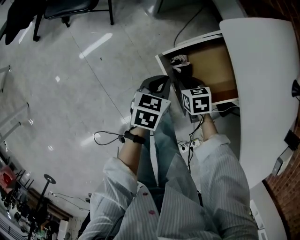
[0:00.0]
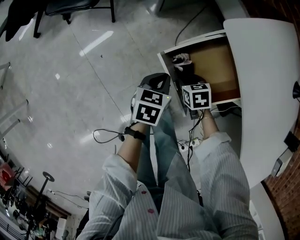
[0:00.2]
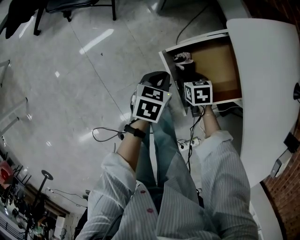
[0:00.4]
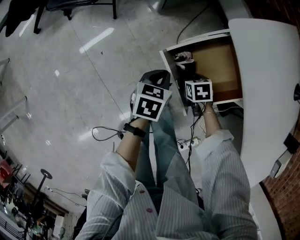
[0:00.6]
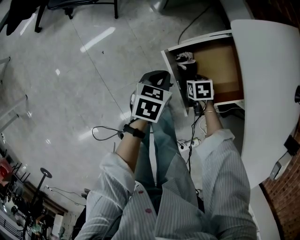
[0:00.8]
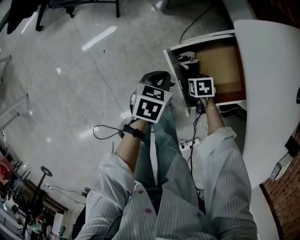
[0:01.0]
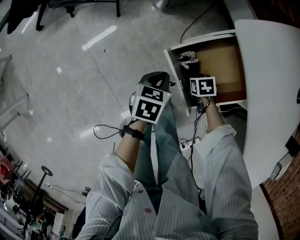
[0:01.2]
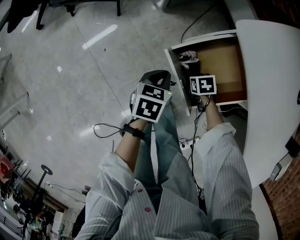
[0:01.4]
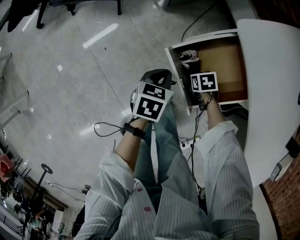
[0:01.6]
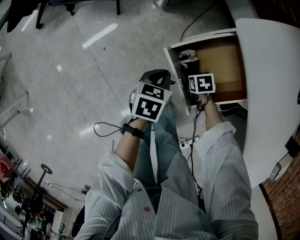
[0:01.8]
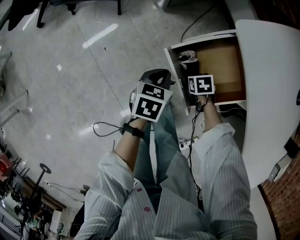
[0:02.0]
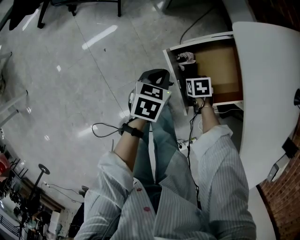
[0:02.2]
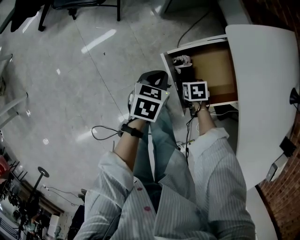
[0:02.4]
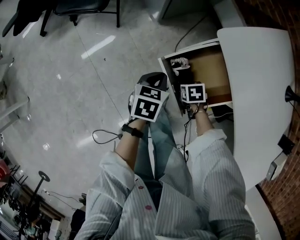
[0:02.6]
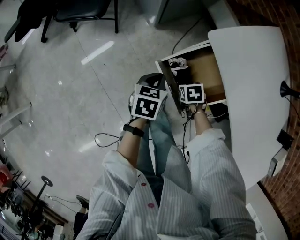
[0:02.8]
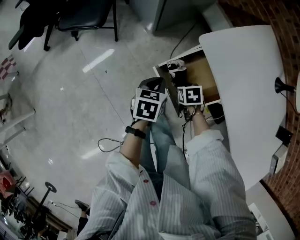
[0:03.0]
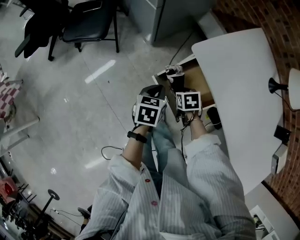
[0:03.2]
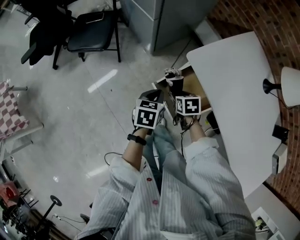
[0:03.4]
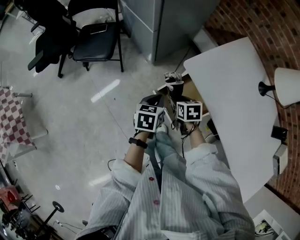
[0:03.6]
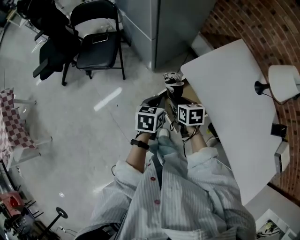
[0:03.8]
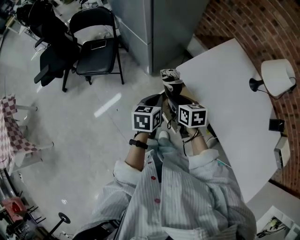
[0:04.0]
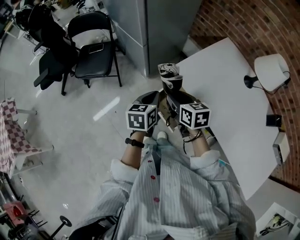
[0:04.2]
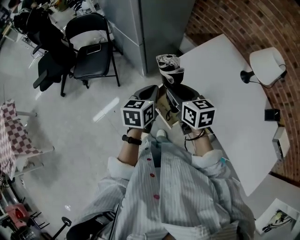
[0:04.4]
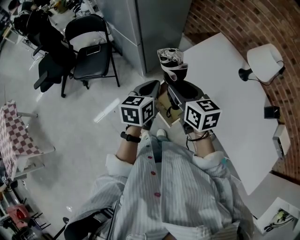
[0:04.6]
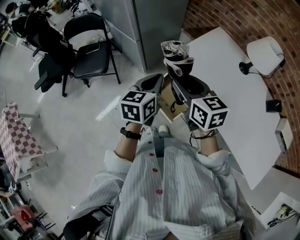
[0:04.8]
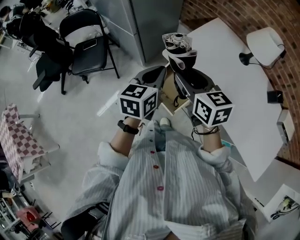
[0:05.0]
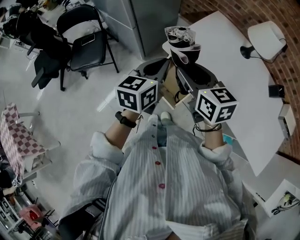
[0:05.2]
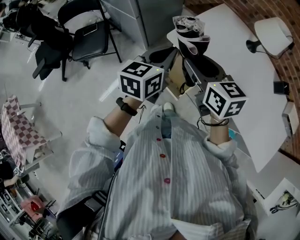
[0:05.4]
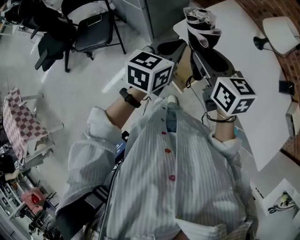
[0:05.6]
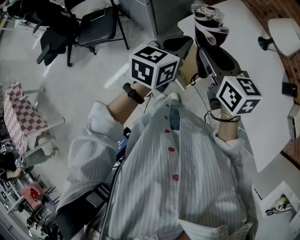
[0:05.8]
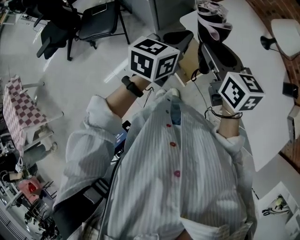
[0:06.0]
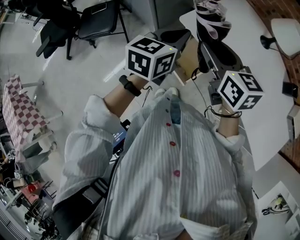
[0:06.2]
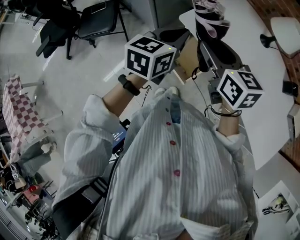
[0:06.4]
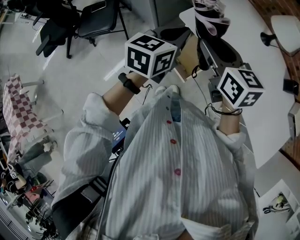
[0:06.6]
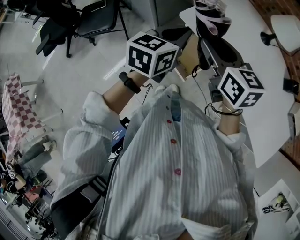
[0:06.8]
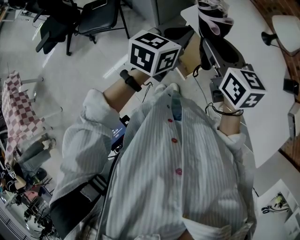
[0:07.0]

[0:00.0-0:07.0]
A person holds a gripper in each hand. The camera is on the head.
0:00.0 to 0:01.4: The right gripper shifts roughly 10 cm downward, and opens its fingers.
0:01.4 to 0:02.8: Both grippers move upward, about 10 cm.
0:02.8 to 0:04.2: The right gripper goes roughly 35 cm upward, and points its fingers approximately 40 degrees further upward; the left gripper heads upward, covering some 25 cm.
0:04.2 to 0:05.6: Both grippers move upward and to the right, roughly 15 cm. The left gripper swivels roughly 30 degrees.
0:05.6 to 0:07.0: The grippers stay close to where they were, moving slightly.

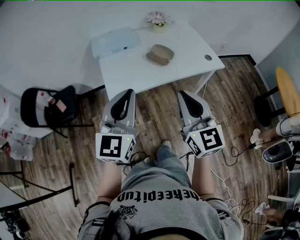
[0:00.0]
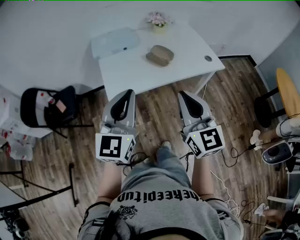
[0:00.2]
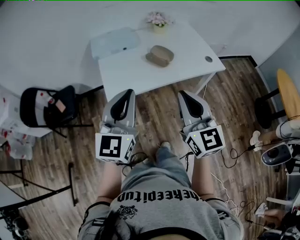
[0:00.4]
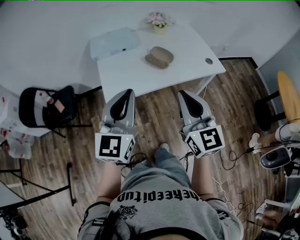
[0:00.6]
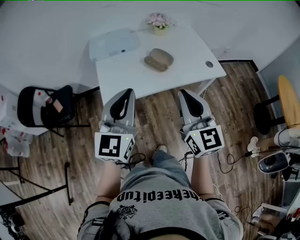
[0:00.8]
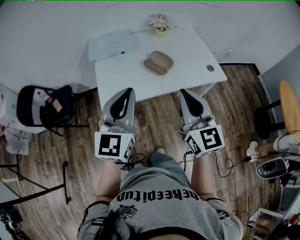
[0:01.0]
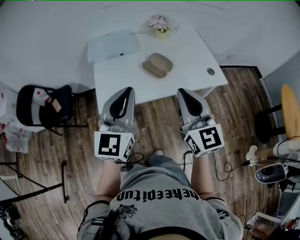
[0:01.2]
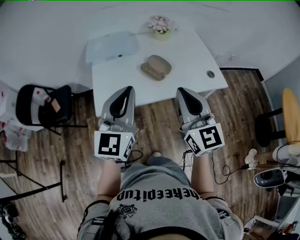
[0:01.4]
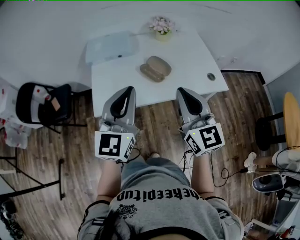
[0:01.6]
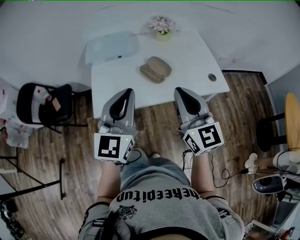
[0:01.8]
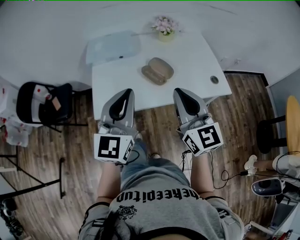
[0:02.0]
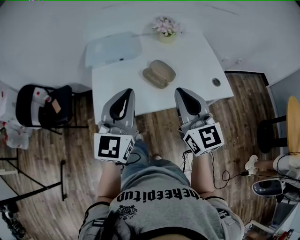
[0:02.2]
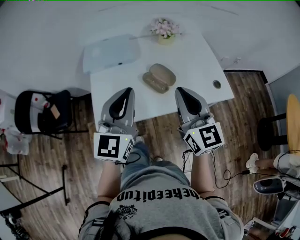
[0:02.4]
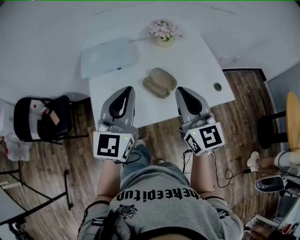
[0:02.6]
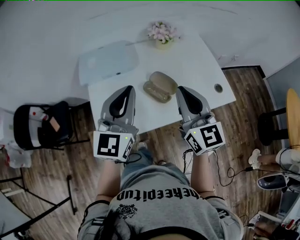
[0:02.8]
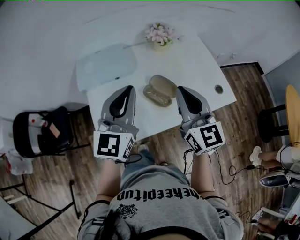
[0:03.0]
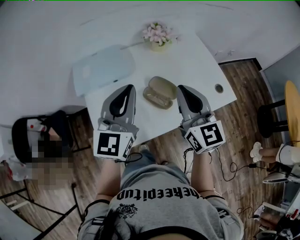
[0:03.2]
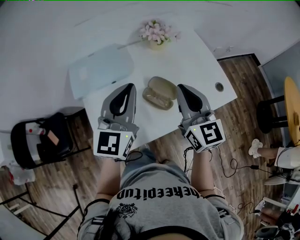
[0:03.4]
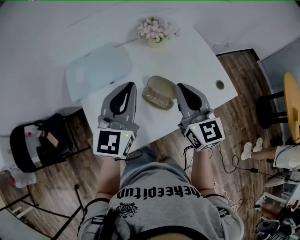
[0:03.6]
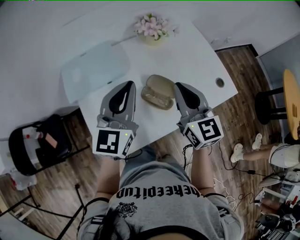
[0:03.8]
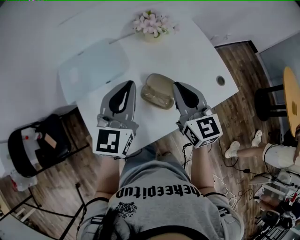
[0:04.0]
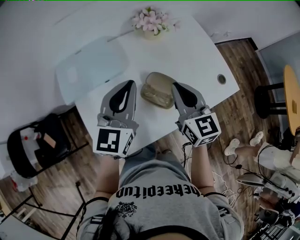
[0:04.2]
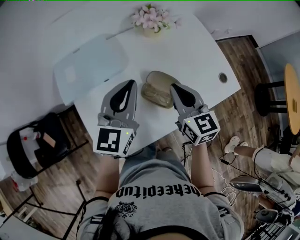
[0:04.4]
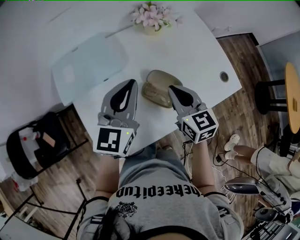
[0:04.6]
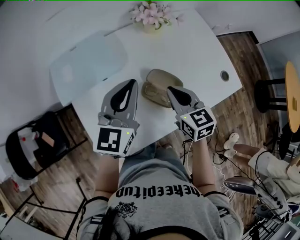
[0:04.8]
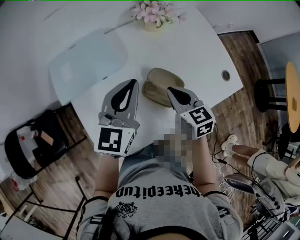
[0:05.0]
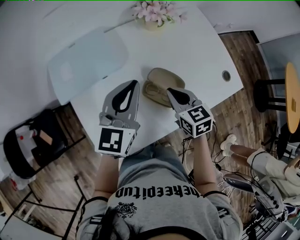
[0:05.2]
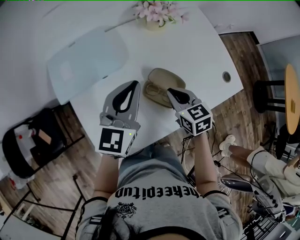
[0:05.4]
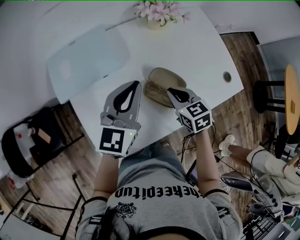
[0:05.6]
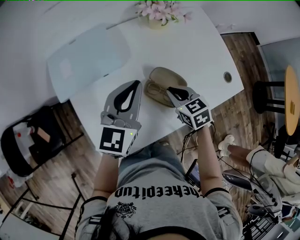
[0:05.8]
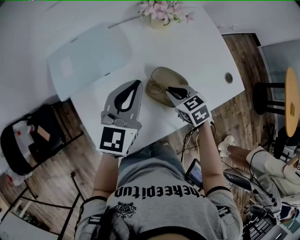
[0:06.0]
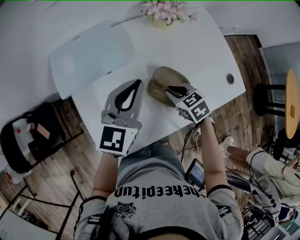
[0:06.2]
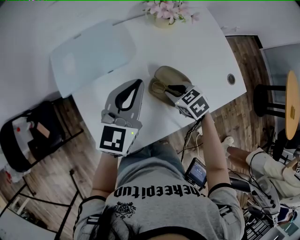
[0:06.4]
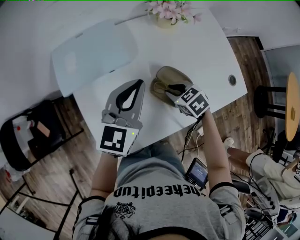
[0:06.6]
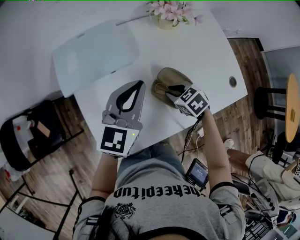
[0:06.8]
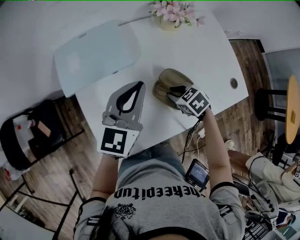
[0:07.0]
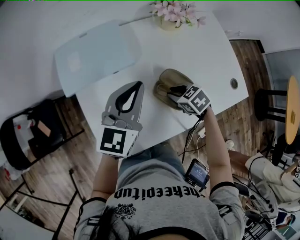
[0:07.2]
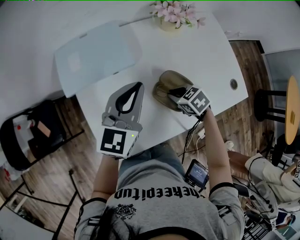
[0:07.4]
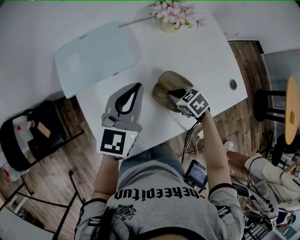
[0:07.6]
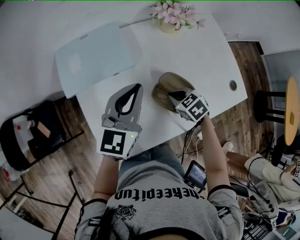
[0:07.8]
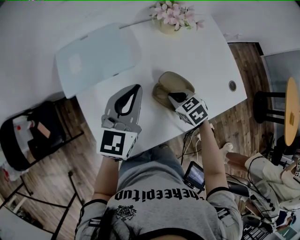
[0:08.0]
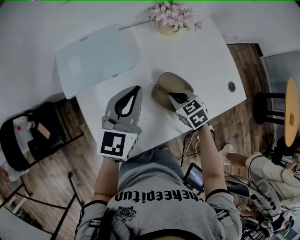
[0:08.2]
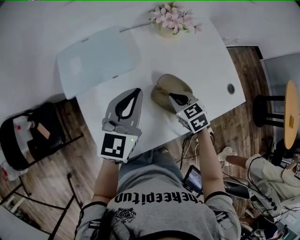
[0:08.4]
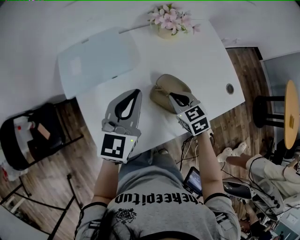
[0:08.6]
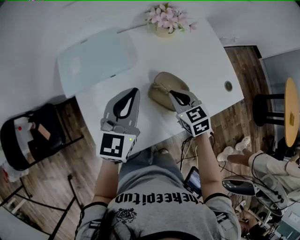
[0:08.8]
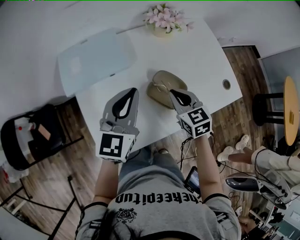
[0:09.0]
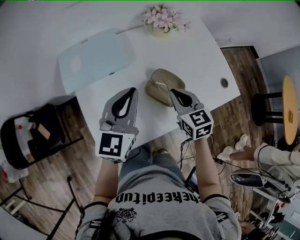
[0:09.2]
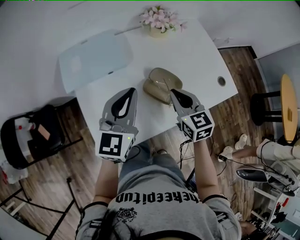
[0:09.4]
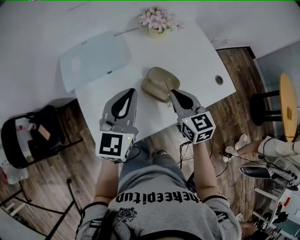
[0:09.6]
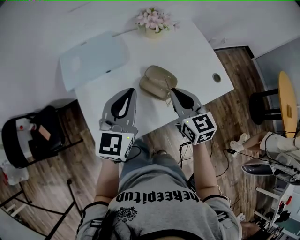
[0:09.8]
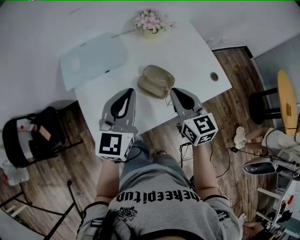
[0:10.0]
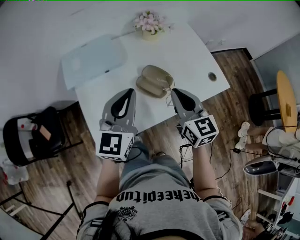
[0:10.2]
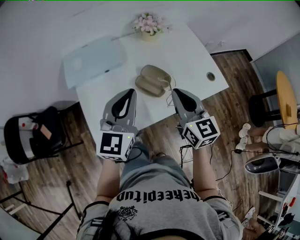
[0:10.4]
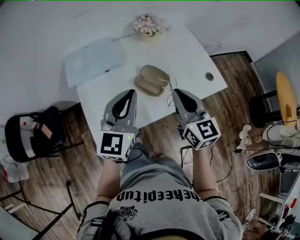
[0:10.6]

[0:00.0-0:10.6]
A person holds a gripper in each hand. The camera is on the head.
0:00.0 to 0:01.6: Both grippers move forward and to the right, about 15 cm.
0:01.6 to 0:03.0: Both grippers move forward, roughly 20 cm.
0:03.0 to 0:04.6: The right gripper is displaced downward and forward by approximately 15 cm, and rotates approximately 30 degrees; the left gripper is displaced forward and downward by roughly 15 cm.
0:04.6 to 0:06.0: The right gripper shifts about 10 cm downward, and changes its angle by about 30 degrees.
0:07.6 to 0:09.0: The right gripper heads upward, covering roughly 10 cm, and turns by approximately 40 degrees.
0:09.0 to 0:10.6: The right gripper goes approximately 20 cm upward and backward, and swivels about 30 degrees. Meanwhile the left gripper shifts some 15 cm backward and upward.

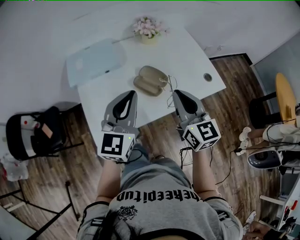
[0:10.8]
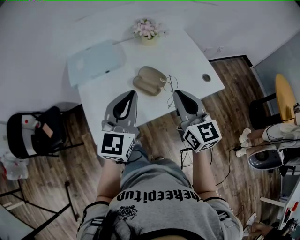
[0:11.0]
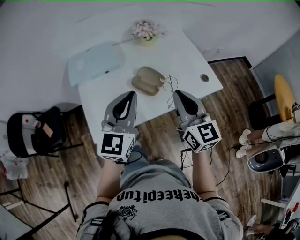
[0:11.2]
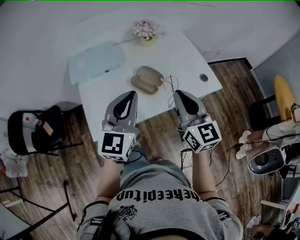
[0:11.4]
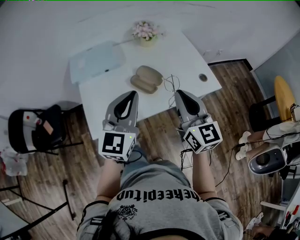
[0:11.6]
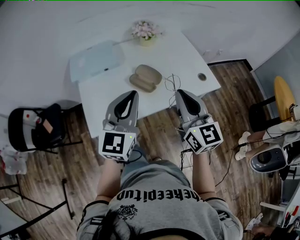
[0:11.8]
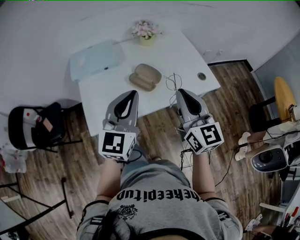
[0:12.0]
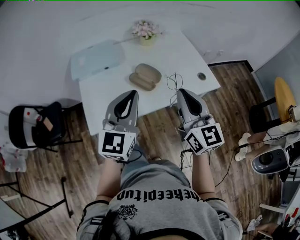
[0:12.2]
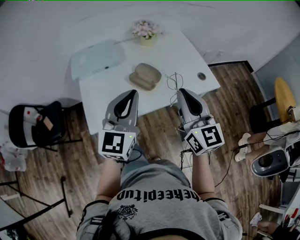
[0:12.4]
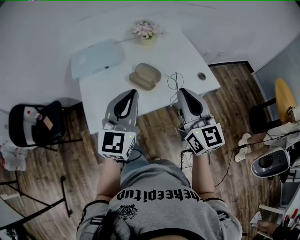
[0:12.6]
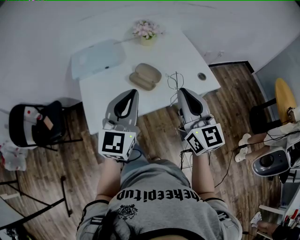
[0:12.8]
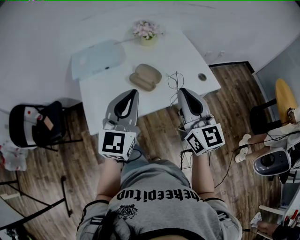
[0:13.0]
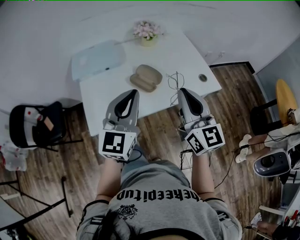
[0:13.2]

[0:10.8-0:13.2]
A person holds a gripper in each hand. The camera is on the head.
0:10.8 to 0:12.0: The grippers both shift backward by roughly 5 cm.
0:12.0 to 0:13.2: The grippers make only small movements.

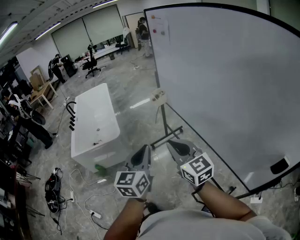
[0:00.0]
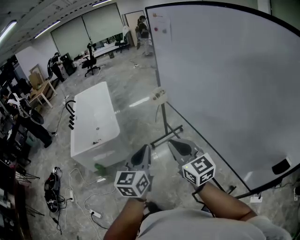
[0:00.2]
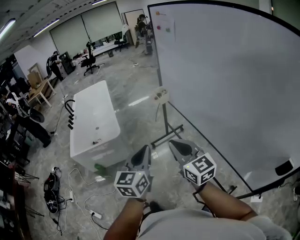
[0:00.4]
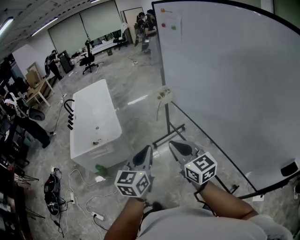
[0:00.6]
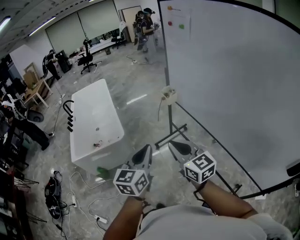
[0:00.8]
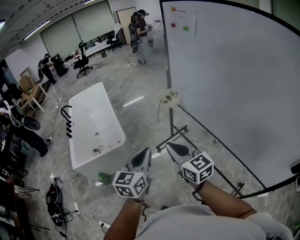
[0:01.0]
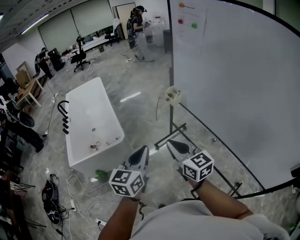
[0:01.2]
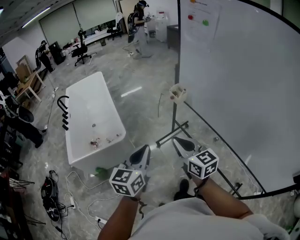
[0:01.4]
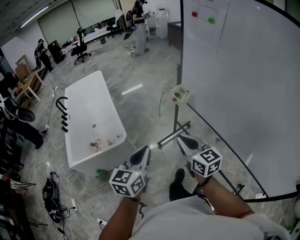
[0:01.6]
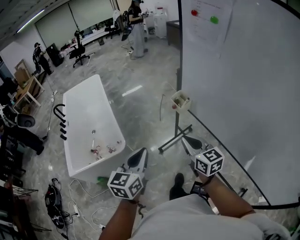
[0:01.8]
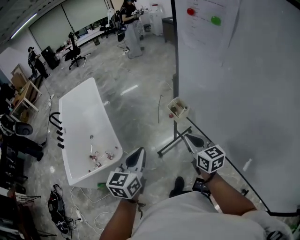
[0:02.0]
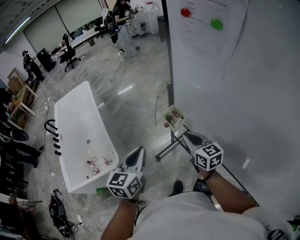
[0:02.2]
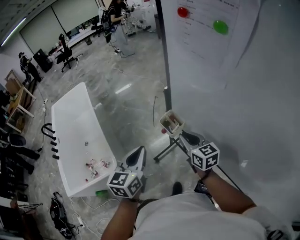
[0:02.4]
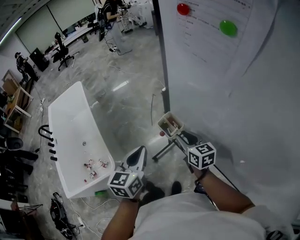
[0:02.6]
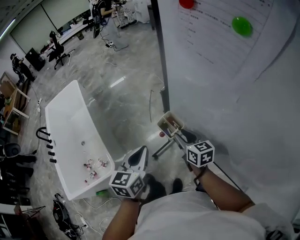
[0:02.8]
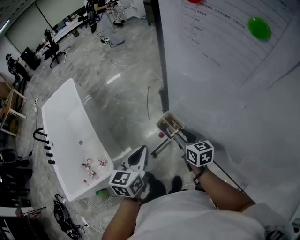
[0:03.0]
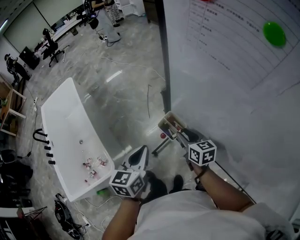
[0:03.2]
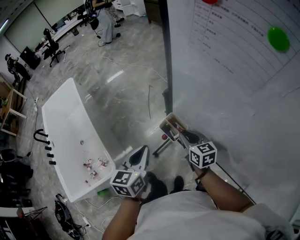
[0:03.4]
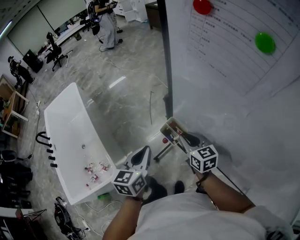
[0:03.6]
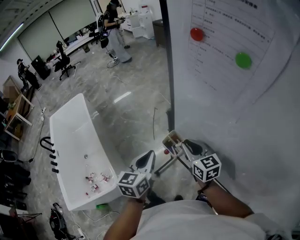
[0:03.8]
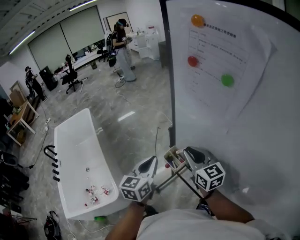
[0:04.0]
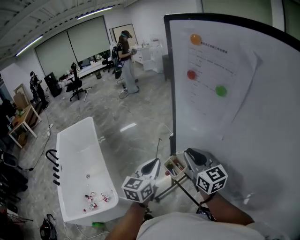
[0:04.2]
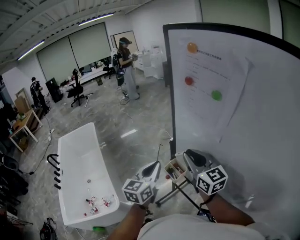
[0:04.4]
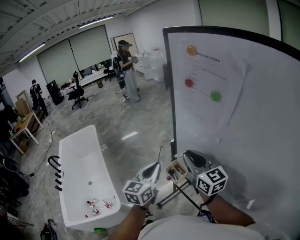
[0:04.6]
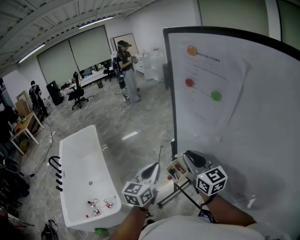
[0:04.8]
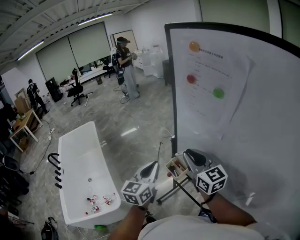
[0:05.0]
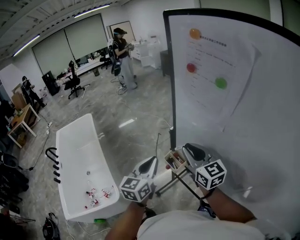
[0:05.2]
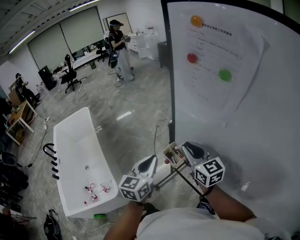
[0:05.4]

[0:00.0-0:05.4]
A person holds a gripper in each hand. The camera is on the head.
0:00.0 to 0:01.4: Both grippers travel together forward and to the left, some 30 cm.
0:01.4 to 0:02.8: The pair of grippers is taken forward, roughly 50 cm. The right gripper swivels about 20 degrees, and opens.
0:02.8 to 0:04.0: The left gripper is displaced upward by approximately 5 cm. The right gripper goes some 15 cm upward, and swivels some 20 degrees.
0:04.0 to 0:05.4: The right gripper goes upward and returns, some 10 cm each way.
